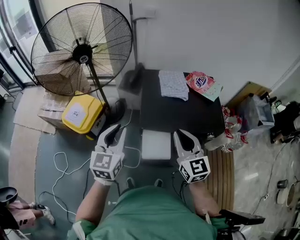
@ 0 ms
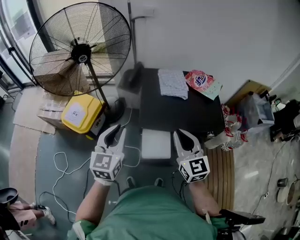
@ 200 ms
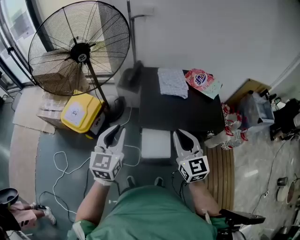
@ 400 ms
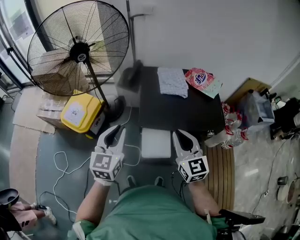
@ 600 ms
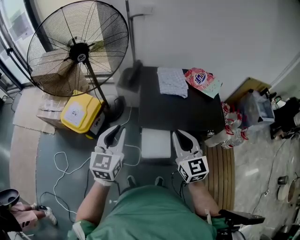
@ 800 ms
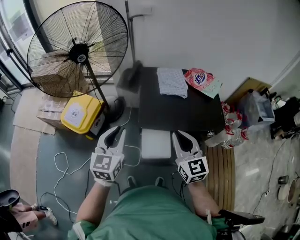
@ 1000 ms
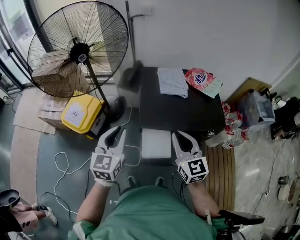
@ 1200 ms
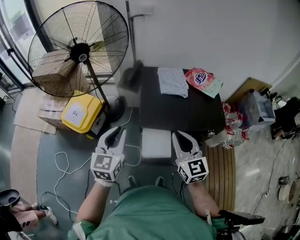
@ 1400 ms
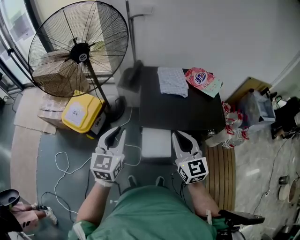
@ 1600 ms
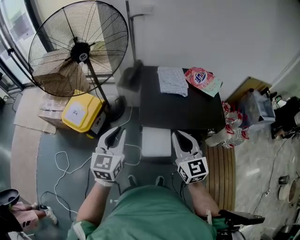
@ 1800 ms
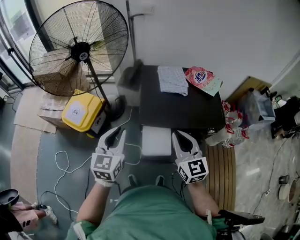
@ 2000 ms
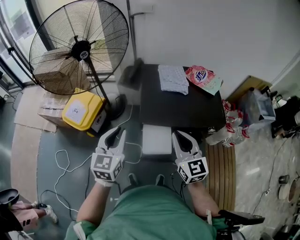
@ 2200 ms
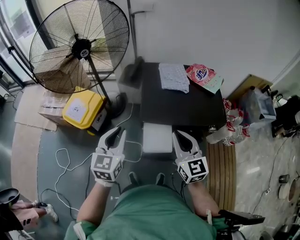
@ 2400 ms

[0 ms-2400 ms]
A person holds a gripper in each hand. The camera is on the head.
0 ms to 2400 ms: The grippers stay close to where they were, moving slightly.

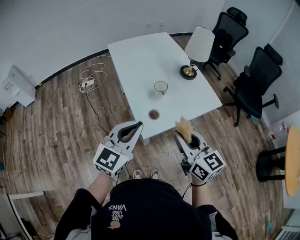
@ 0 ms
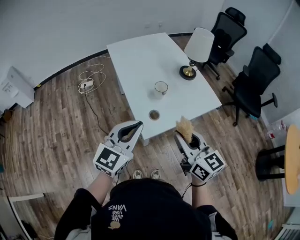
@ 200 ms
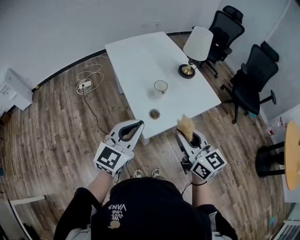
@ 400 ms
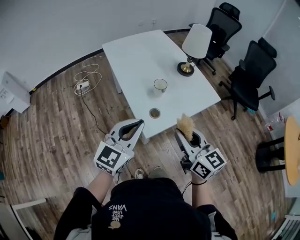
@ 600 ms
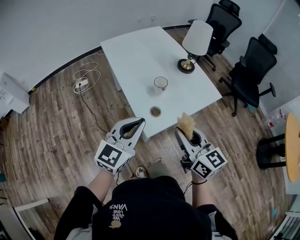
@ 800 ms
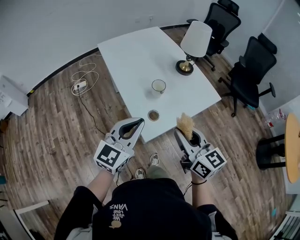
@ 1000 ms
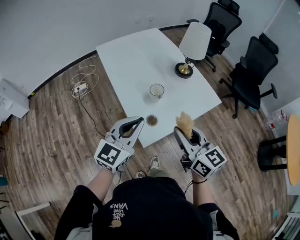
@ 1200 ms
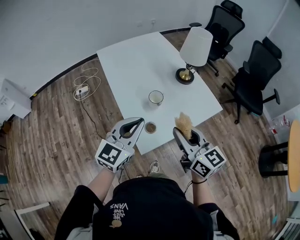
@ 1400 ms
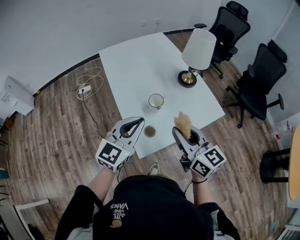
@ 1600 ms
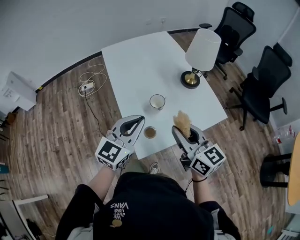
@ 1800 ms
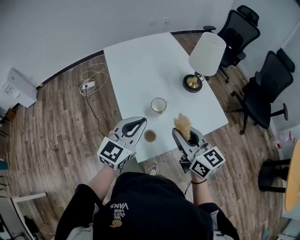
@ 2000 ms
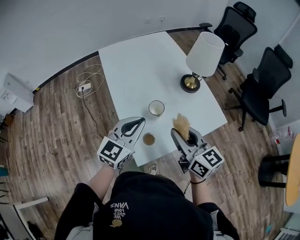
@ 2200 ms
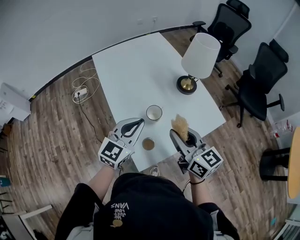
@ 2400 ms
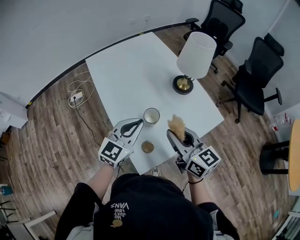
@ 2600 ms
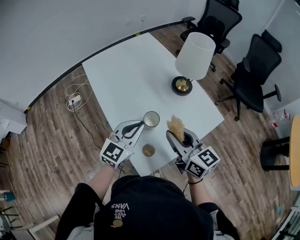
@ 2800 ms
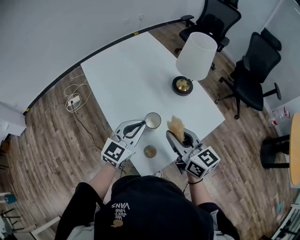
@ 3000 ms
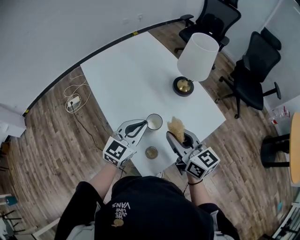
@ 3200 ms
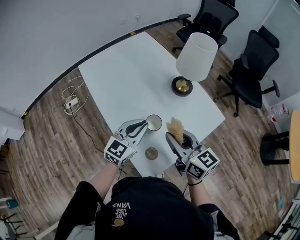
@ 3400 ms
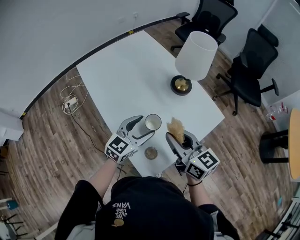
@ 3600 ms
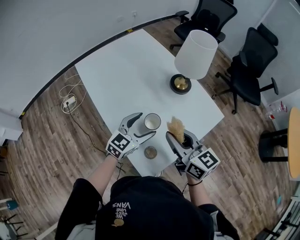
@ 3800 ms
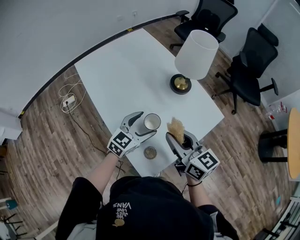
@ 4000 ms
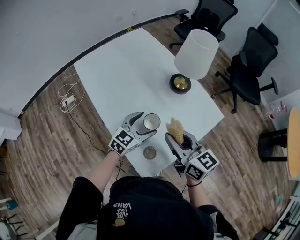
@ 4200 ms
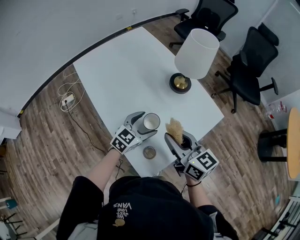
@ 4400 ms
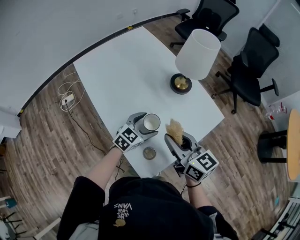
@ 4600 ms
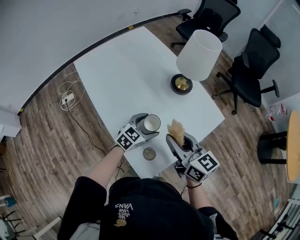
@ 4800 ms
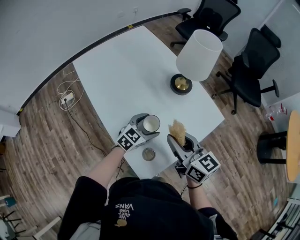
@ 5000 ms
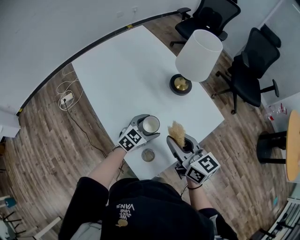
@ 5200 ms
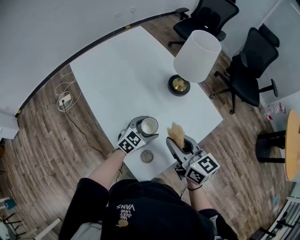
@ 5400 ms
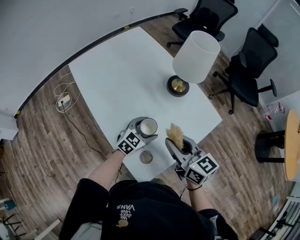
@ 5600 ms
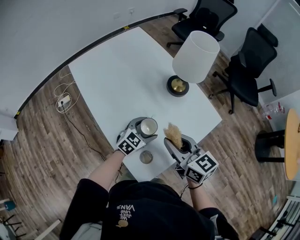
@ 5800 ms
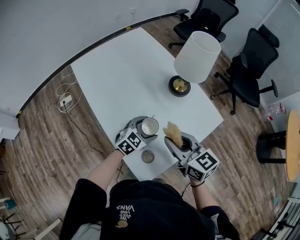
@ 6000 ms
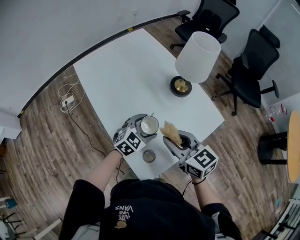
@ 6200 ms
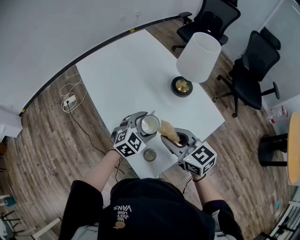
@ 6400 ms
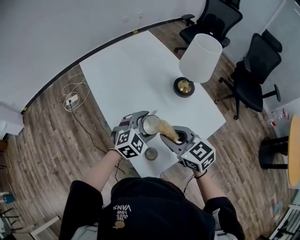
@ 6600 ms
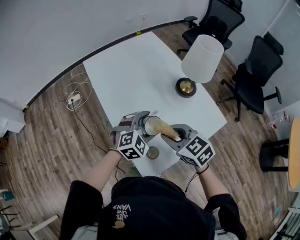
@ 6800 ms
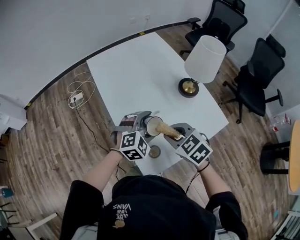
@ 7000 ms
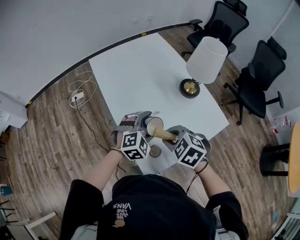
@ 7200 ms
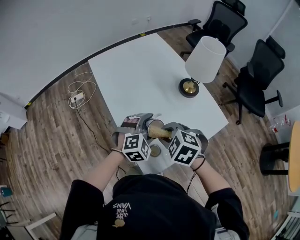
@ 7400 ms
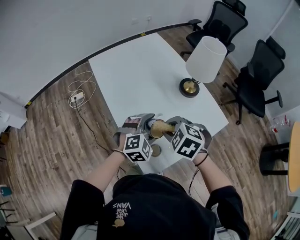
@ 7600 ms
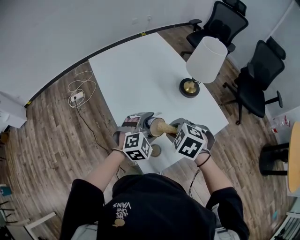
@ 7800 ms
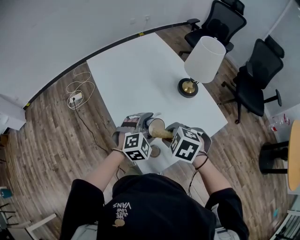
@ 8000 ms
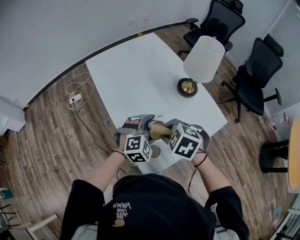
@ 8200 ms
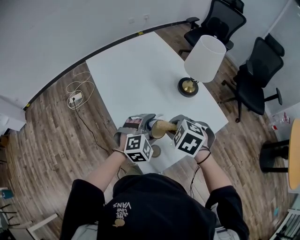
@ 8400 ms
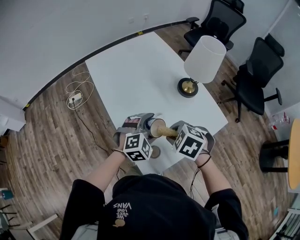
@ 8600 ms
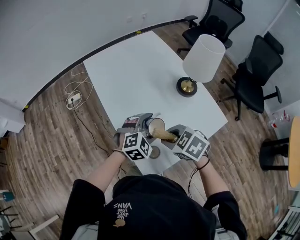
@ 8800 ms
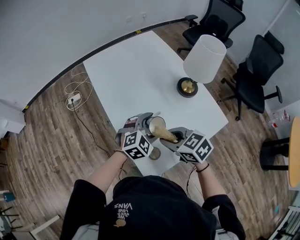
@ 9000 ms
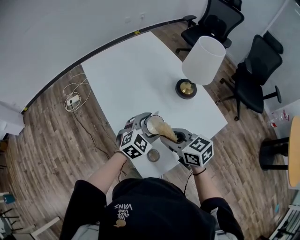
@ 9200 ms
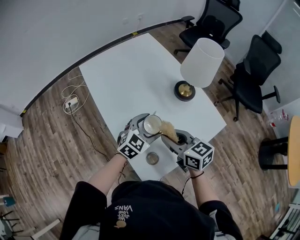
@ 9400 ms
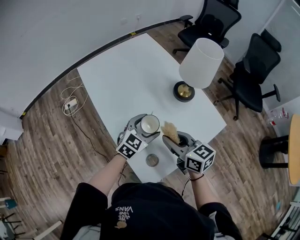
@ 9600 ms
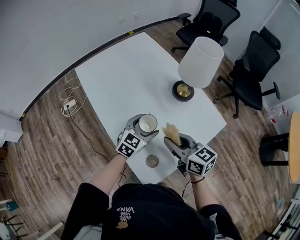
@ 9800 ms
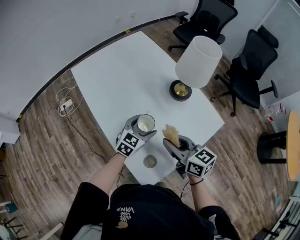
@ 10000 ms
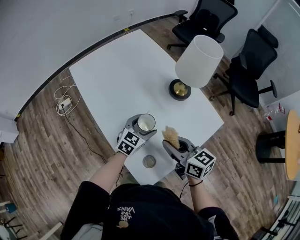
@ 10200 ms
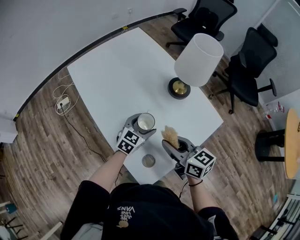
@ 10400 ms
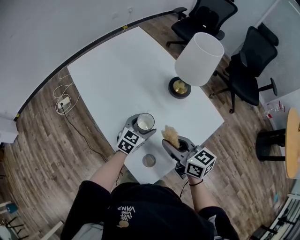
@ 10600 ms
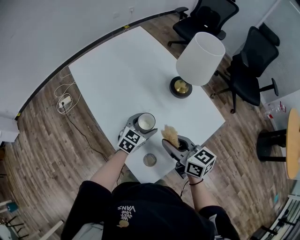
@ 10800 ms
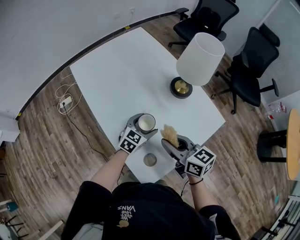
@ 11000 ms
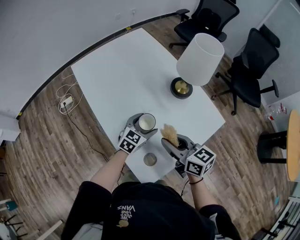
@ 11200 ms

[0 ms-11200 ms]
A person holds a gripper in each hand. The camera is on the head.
0 ms to 1600 ms: The two grippers go roughly 15 cm forward.
1600 ms to 3200 ms: The right gripper is displaced forward by some 10 cm; the left gripper is displaced forward and downward by some 15 cm.
3200 ms to 4800 ms: The left gripper goes roughly 15 cm downward, rotates roughly 20 degrees, and opens.
4800 ms to 6400 ms: The left gripper travels upward by approximately 5 cm, and swivels about 20 degrees. Meanwhile the right gripper changes its angle by approximately 20 degrees.
6400 ms to 8000 ms: The right gripper goes about 5 cm downward, and tips its fingers downward by approximately 50 degrees.
8000 ms to 9600 ms: The two grippers go roughly 5 cm forward. The left gripper changes its angle by about 30 degrees. The right gripper tips its fingers upward by approximately 50 degrees.
9600 ms to 11200 ms: The left gripper travels downward by approximately 5 cm.

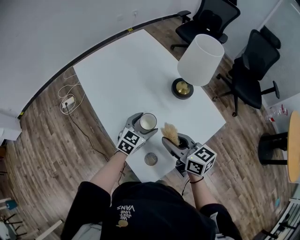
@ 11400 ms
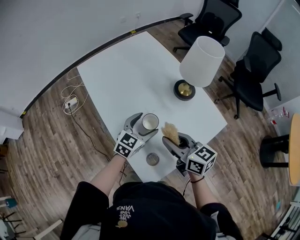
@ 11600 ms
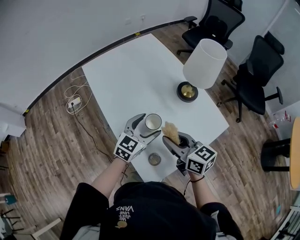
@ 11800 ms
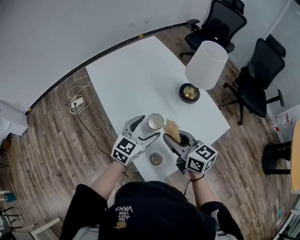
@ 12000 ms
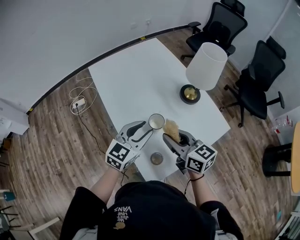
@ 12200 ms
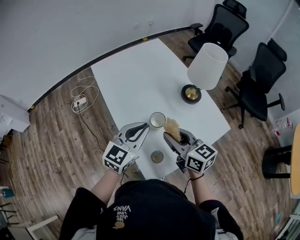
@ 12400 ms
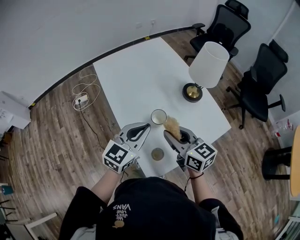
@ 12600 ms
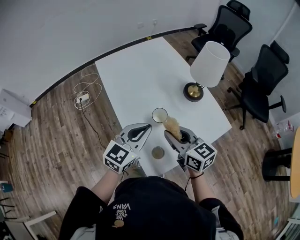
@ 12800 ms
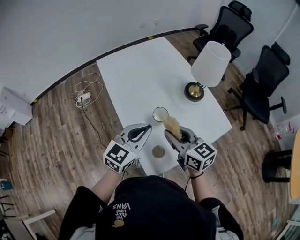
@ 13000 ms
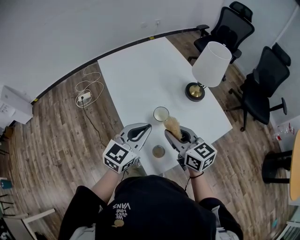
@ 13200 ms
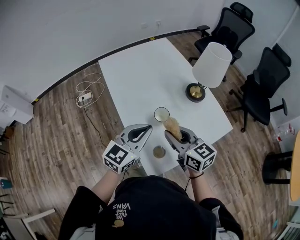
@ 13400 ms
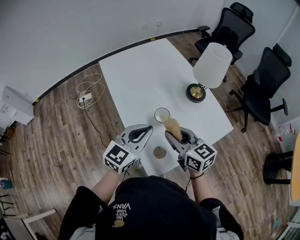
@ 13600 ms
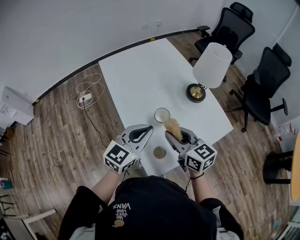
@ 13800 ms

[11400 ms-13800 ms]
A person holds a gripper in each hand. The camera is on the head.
11400 ms to 12600 ms: The left gripper heads upward and backward, covering approximately 20 cm, and closes; the right gripper ends up some 5 cm from where it was.
12600 ms to 13800 ms: There are only small adjustments of the grippers.

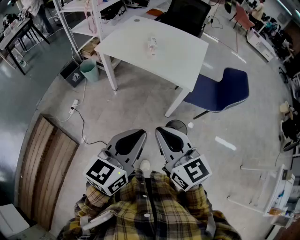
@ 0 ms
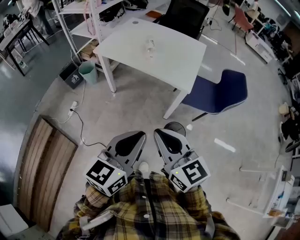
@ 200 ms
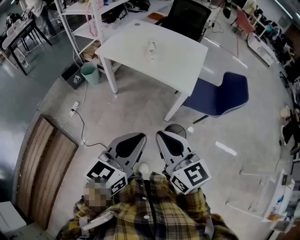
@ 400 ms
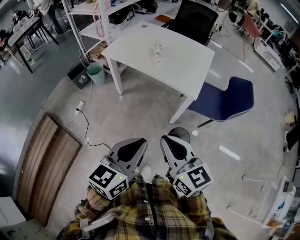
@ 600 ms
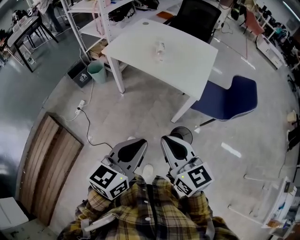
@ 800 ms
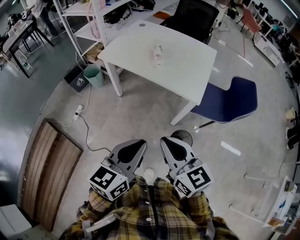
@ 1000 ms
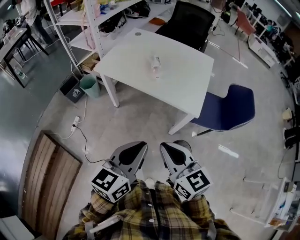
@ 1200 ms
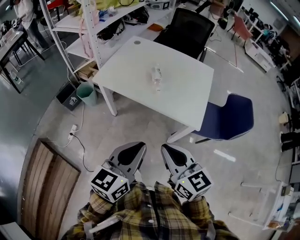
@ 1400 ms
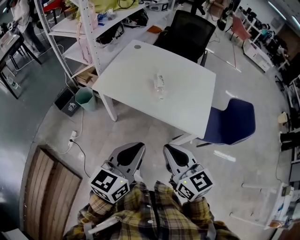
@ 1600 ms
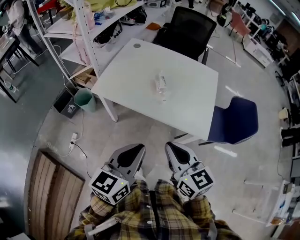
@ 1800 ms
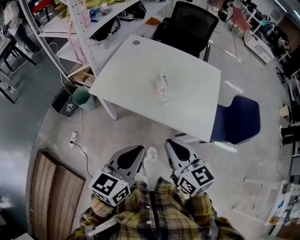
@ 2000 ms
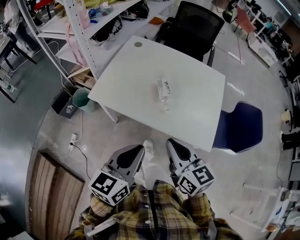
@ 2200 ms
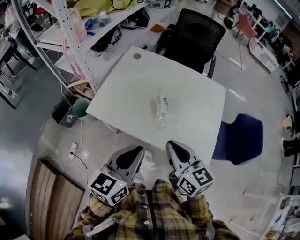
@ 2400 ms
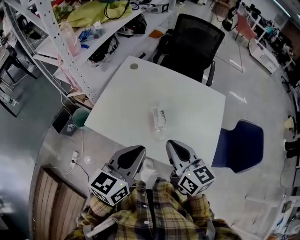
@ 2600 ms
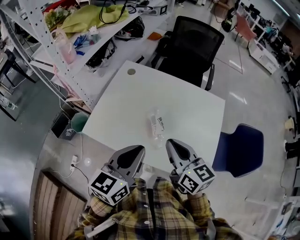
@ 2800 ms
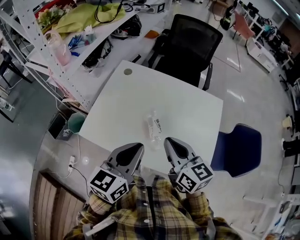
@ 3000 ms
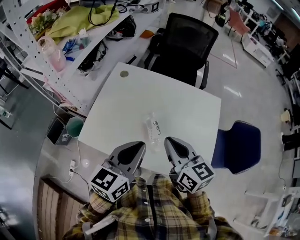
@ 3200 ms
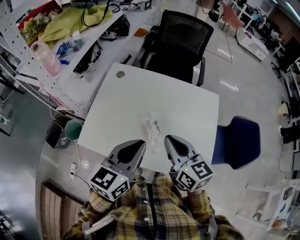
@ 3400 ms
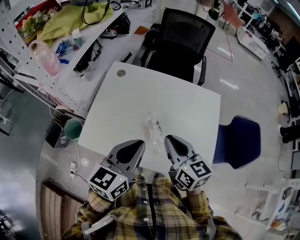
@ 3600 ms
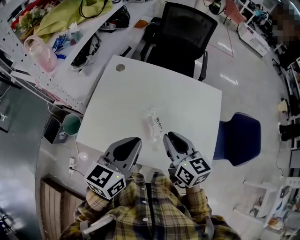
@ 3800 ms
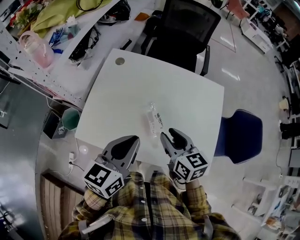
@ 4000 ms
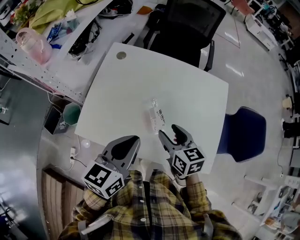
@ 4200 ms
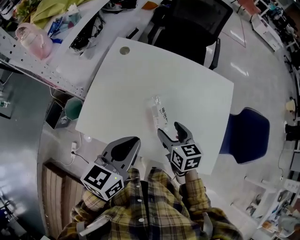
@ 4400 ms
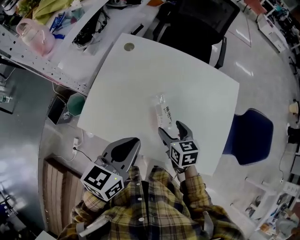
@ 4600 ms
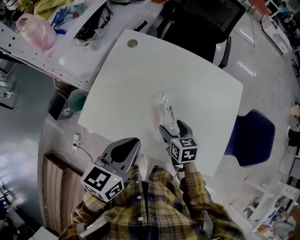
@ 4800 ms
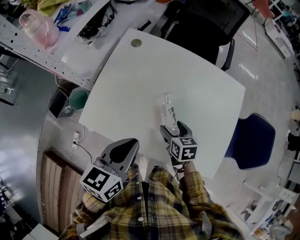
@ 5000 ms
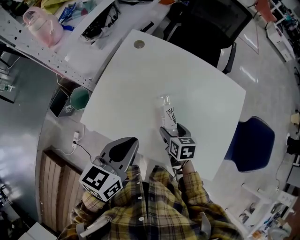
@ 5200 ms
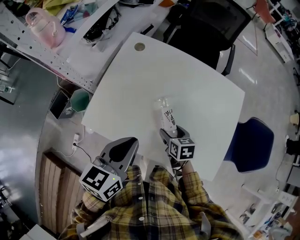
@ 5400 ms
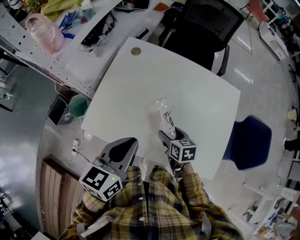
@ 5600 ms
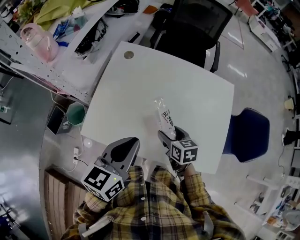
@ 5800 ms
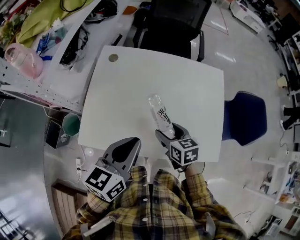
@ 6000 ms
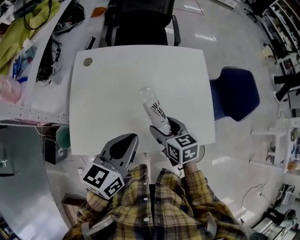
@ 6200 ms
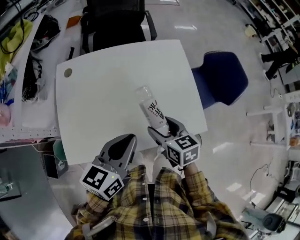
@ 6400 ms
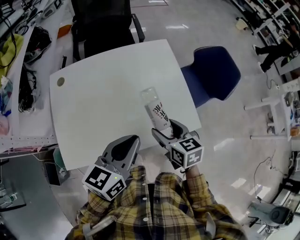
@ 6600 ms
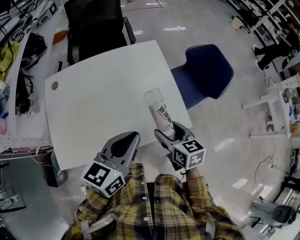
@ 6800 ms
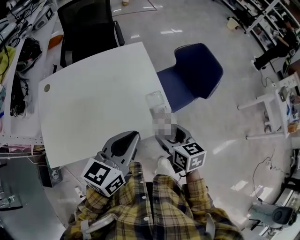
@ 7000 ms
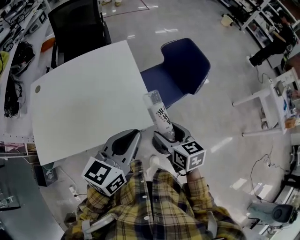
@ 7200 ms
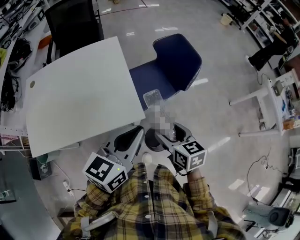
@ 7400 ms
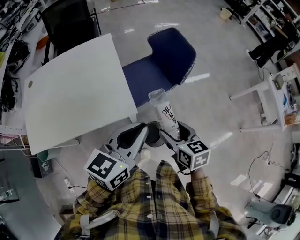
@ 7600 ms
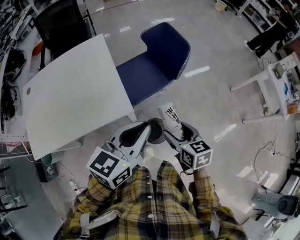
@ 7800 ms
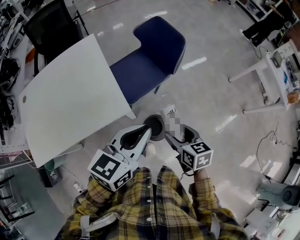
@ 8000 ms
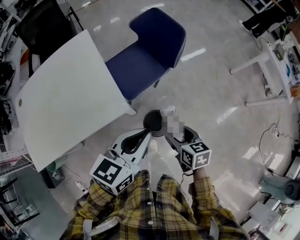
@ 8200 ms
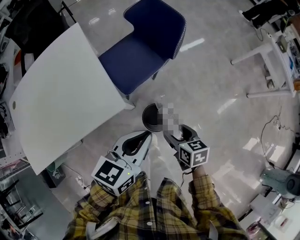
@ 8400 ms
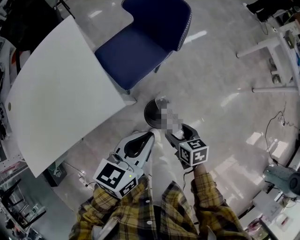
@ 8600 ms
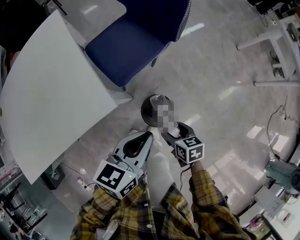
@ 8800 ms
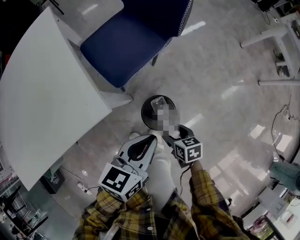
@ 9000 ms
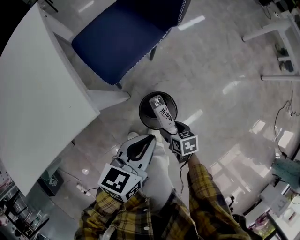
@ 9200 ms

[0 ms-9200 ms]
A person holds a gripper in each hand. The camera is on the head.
0 ms to 1600 ms: The two grippers go some 25 cm forward.
1600 ms to 3000 ms: Both grippers travel together forward, some 35 cm.
3000 ms to 4600 ms: The left gripper travels downward by about 5 cm. The right gripper heads downward, covering about 20 cm, swivels roughly 30 degrees, and opens its fingers.
4600 ms to 6200 ms: The right gripper shifts by approximately 5 cm.
6200 ms to 7600 ms: Both grippers are carried to the right, some 50 cm. The left gripper changes its angle by about 20 degrees, while the right gripper swivels some 20 degrees.
7600 ms to 9200 ms: Both grippers travel together downward, some 40 cm. The right gripper rotates about 30 degrees. The left gripper rotates some 30 degrees.
